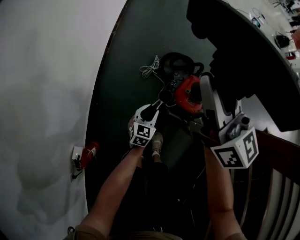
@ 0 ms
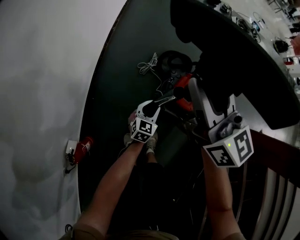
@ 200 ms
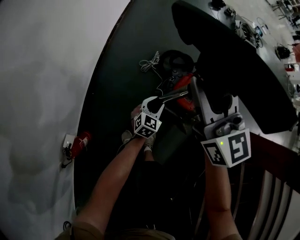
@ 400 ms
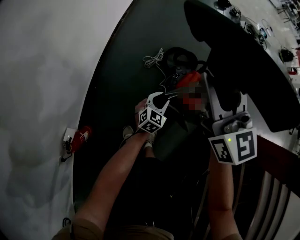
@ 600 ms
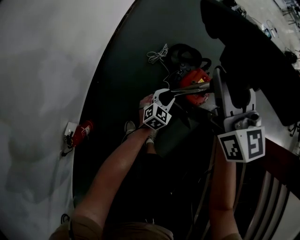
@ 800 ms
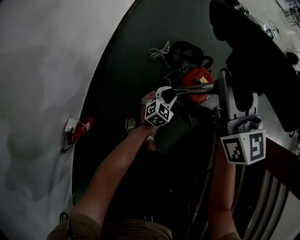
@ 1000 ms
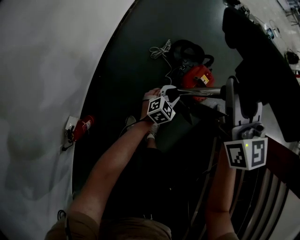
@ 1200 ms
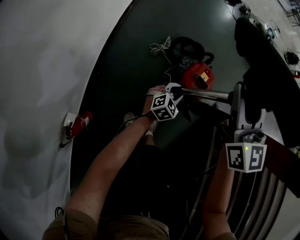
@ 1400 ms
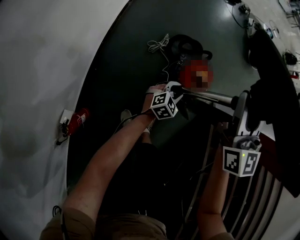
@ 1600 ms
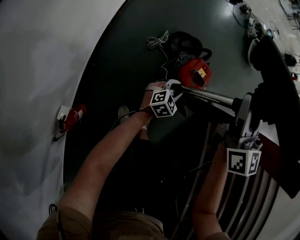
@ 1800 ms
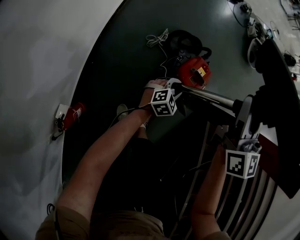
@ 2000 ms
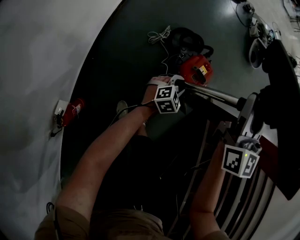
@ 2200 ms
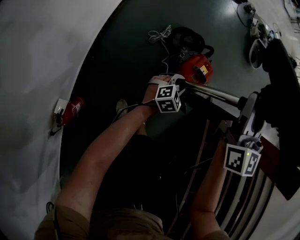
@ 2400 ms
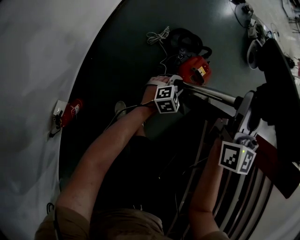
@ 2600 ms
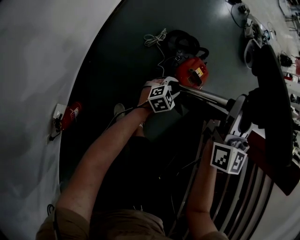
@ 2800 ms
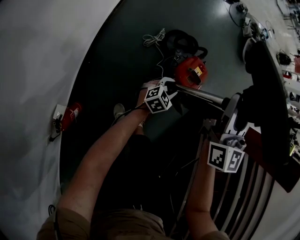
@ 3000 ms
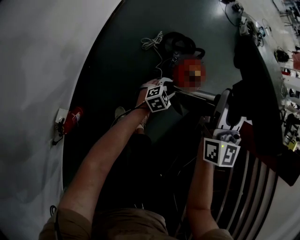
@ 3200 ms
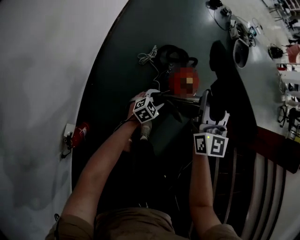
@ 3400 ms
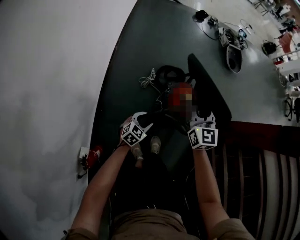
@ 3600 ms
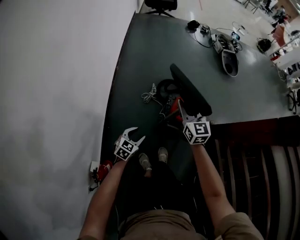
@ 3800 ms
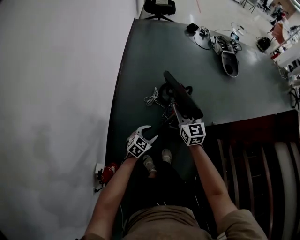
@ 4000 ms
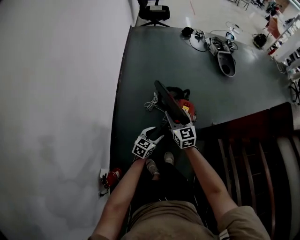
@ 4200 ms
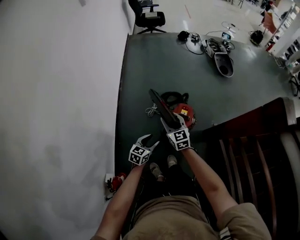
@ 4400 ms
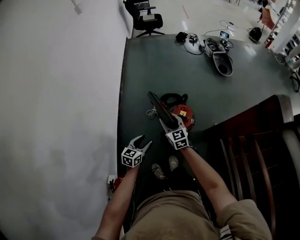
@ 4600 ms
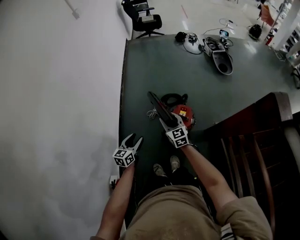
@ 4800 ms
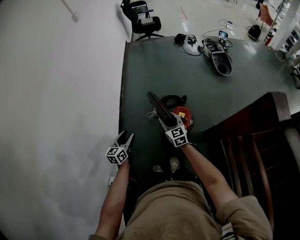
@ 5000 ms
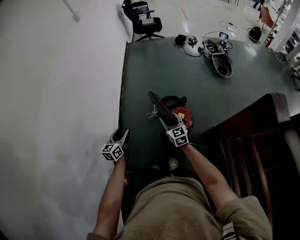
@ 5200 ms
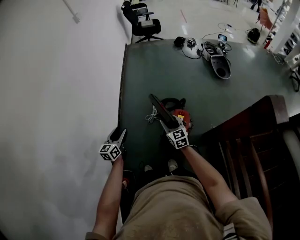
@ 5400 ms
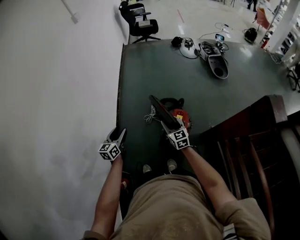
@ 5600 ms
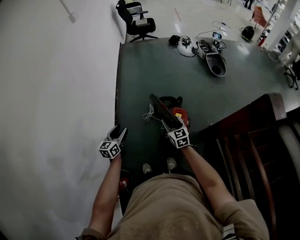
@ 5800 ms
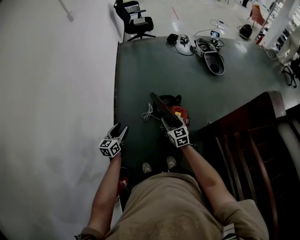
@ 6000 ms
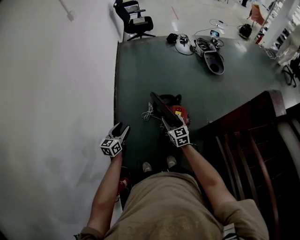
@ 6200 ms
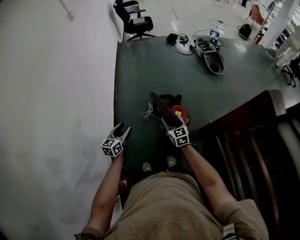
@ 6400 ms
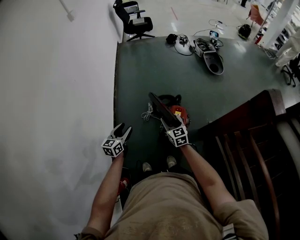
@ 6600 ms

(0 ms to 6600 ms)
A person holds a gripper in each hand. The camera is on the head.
0 ms - 1600 ms: The right gripper heads backward and to the right, covering some 10 cm, and swivels approximately 30 degrees, while the left gripper goes roughly 10 cm to the right, and turns by approximately 30 degrees.
1600 ms - 3200 ms: There are only small adjustments of the grippers.
3200 ms - 5000 ms: The left gripper moves upward, about 35 cm, and rotates approximately 40 degrees; the right gripper is displaced to the right by some 5 cm, and rotates roughly 20 degrees.
5000 ms - 6600 ms: The left gripper changes place by about 5 cm.

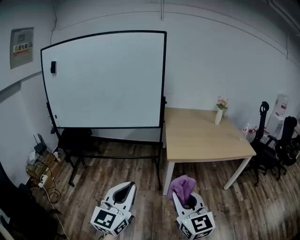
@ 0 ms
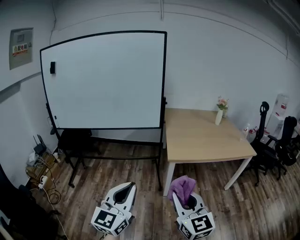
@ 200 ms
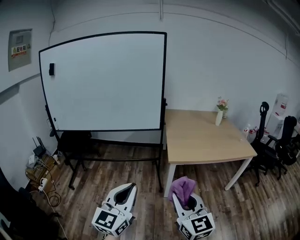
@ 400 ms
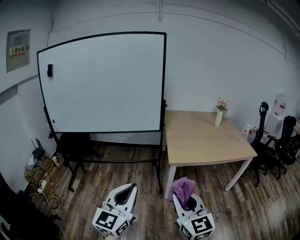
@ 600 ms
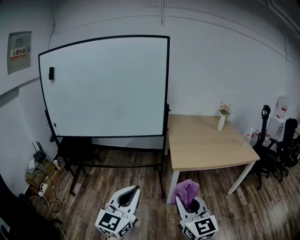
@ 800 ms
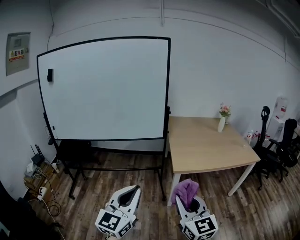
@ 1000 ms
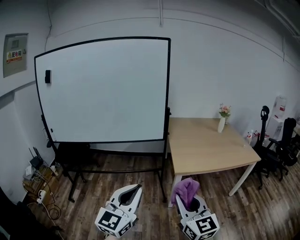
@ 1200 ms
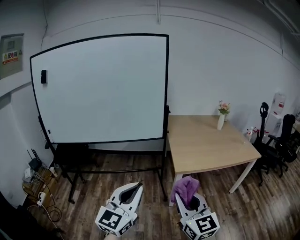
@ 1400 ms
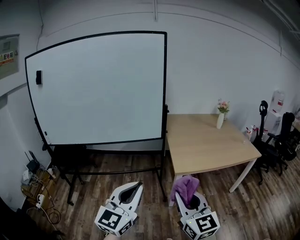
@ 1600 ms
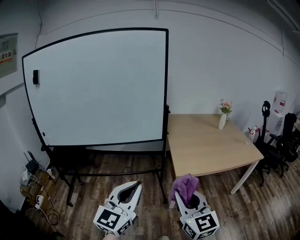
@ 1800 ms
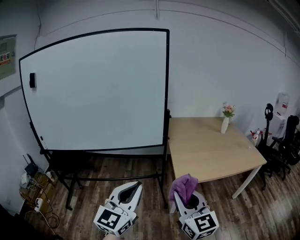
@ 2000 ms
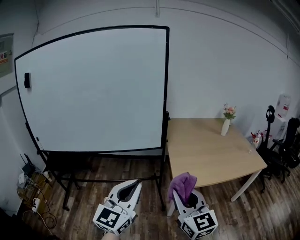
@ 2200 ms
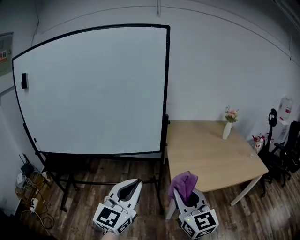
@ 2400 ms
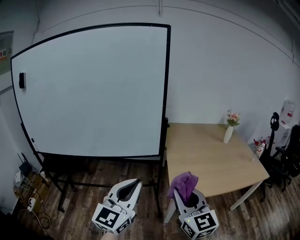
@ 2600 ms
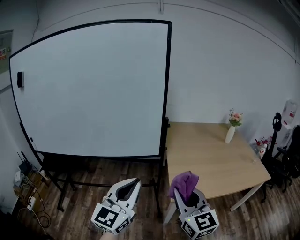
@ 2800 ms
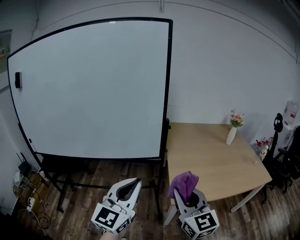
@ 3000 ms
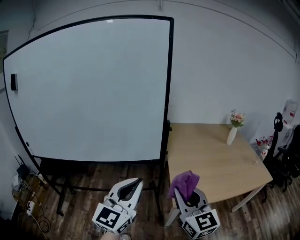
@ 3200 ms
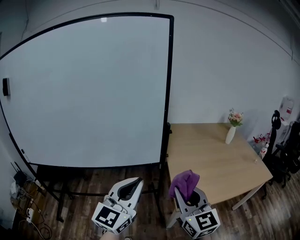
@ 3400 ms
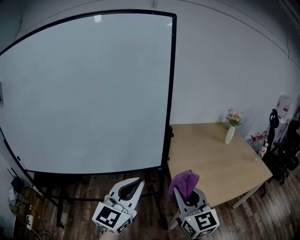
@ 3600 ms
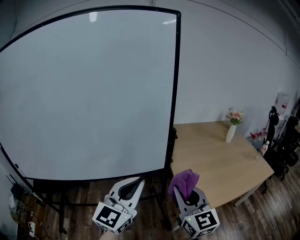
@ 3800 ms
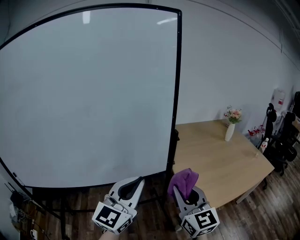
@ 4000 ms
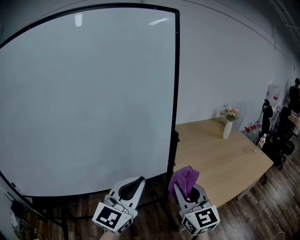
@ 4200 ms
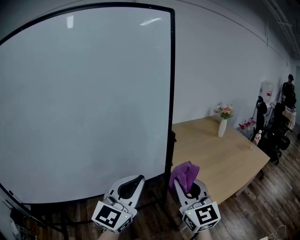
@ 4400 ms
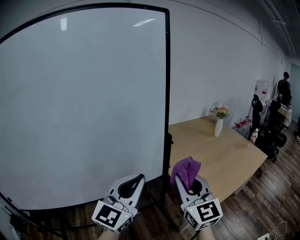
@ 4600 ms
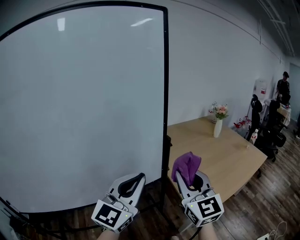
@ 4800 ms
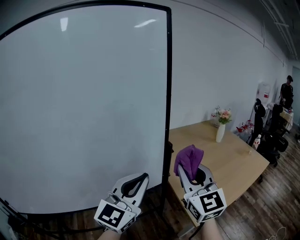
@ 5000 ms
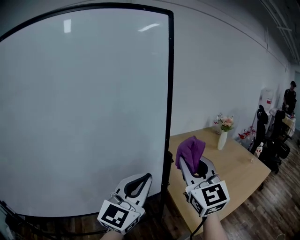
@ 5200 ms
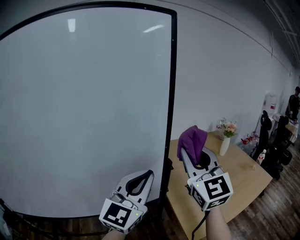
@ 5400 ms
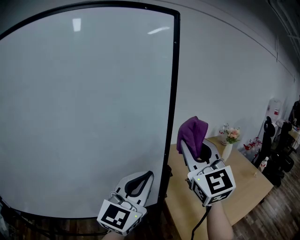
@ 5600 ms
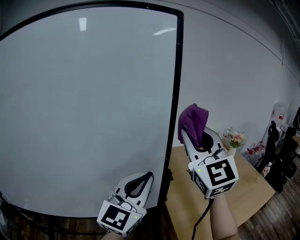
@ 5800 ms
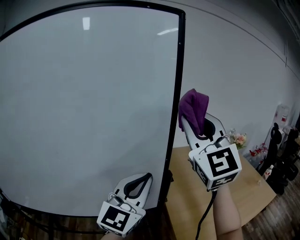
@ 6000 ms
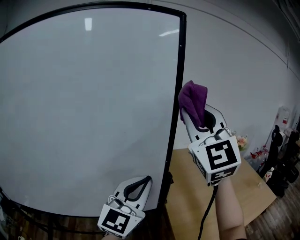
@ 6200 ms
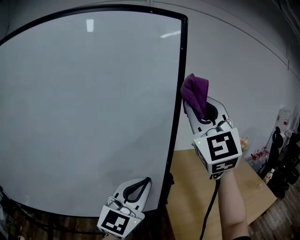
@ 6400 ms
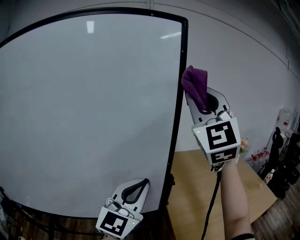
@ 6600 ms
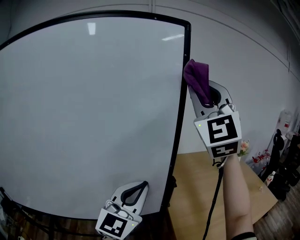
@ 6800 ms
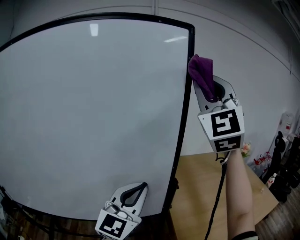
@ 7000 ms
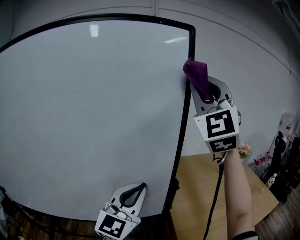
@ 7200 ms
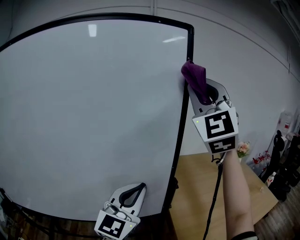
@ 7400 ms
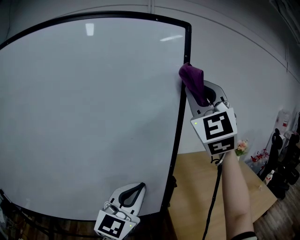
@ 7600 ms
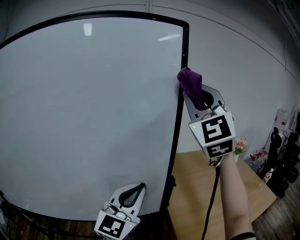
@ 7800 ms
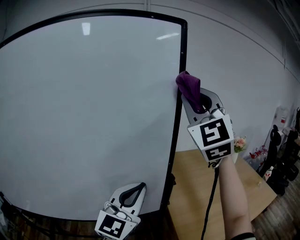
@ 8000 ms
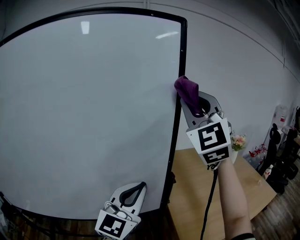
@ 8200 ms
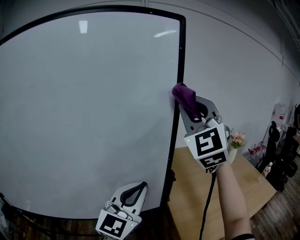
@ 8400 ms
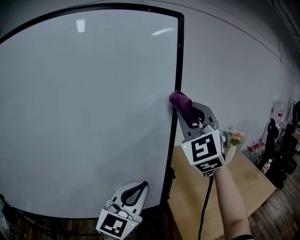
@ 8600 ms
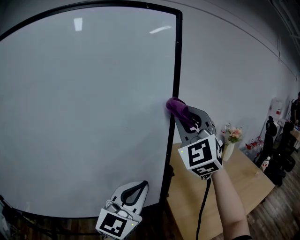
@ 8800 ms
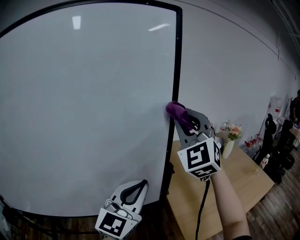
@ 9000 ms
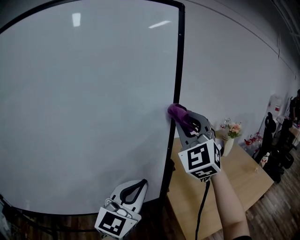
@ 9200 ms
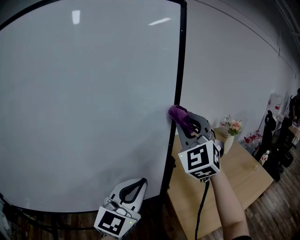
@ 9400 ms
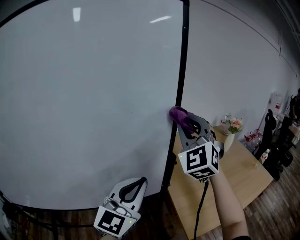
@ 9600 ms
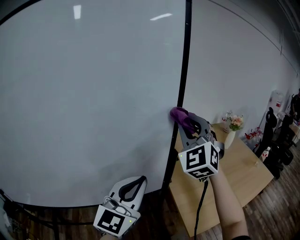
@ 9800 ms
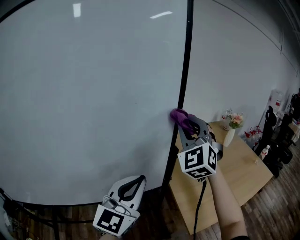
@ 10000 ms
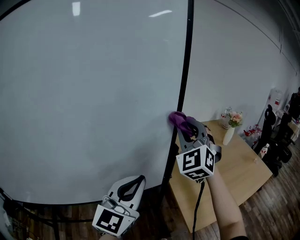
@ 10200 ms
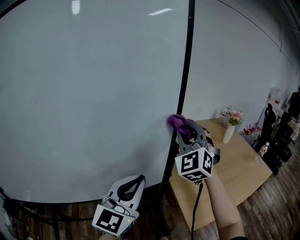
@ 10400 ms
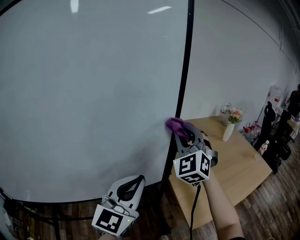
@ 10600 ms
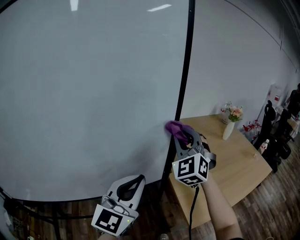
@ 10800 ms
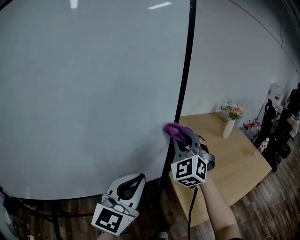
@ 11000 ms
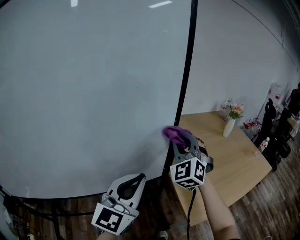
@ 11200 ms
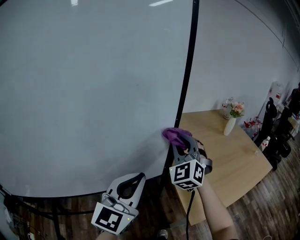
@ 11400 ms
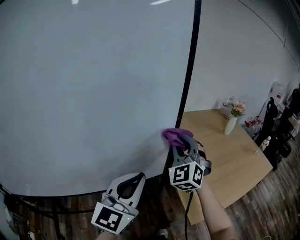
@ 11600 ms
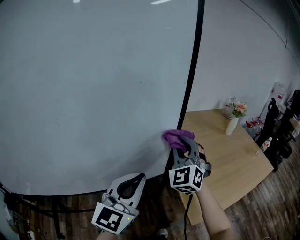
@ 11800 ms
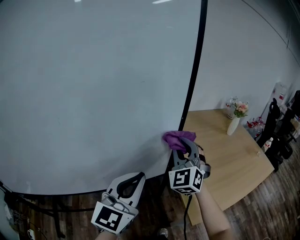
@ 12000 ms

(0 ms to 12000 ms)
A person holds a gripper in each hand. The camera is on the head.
0 ms - 1600 ms: Both grippers move forward and to the left, about 15 cm.
1600 ms - 3000 ms: The two grippers go roughly 30 cm forward.
3000 ms - 4400 ms: The two grippers go some 20 cm forward and to the left. The left gripper turns by about 20 degrees.
4400 ms - 6000 ms: The right gripper is displaced upward and forward by approximately 35 cm, and swivels about 30 degrees. The left gripper heads forward and upward, covering roughly 20 cm.
6000 ms - 7600 ms: The right gripper heads upward, covering about 10 cm.
7600 ms - 9000 ms: The right gripper moves downward, roughly 15 cm.
9000 ms - 10400 ms: The left gripper moves roughly 5 cm, while the right gripper moves downward, some 10 cm.
10400 ms - 12000 ms: The right gripper shifts roughly 10 cm downward.

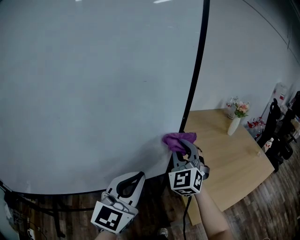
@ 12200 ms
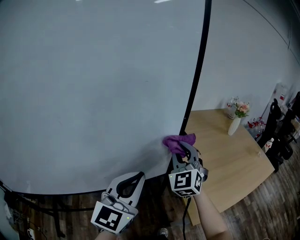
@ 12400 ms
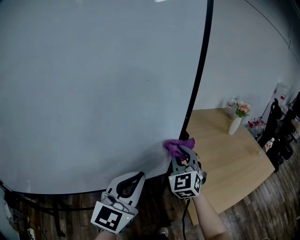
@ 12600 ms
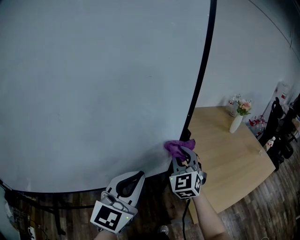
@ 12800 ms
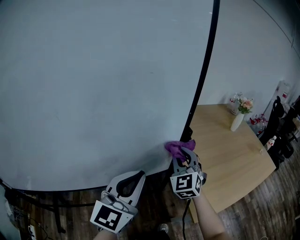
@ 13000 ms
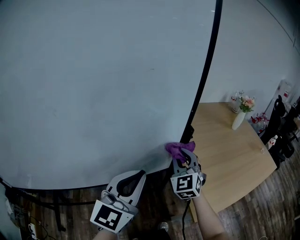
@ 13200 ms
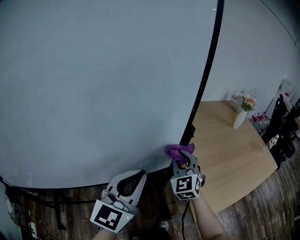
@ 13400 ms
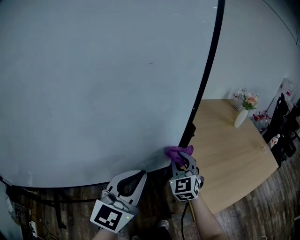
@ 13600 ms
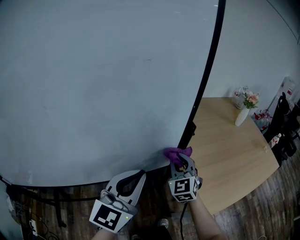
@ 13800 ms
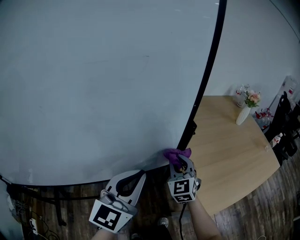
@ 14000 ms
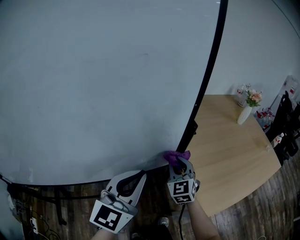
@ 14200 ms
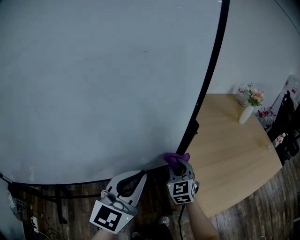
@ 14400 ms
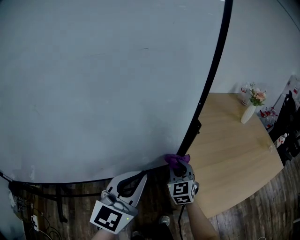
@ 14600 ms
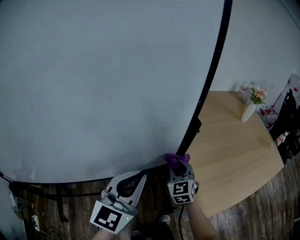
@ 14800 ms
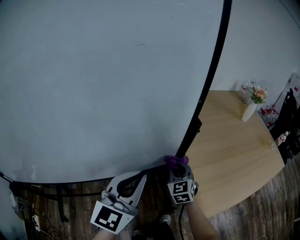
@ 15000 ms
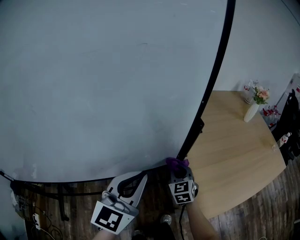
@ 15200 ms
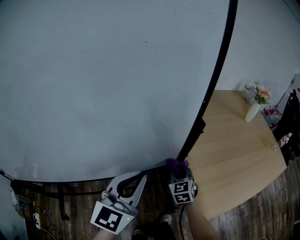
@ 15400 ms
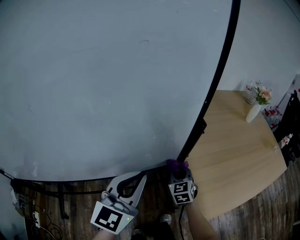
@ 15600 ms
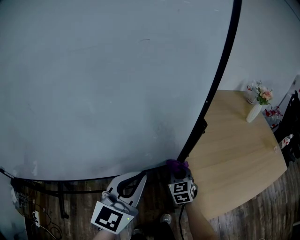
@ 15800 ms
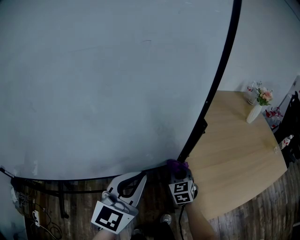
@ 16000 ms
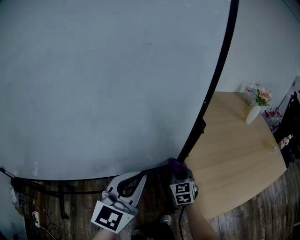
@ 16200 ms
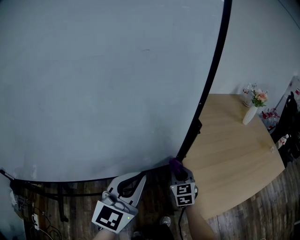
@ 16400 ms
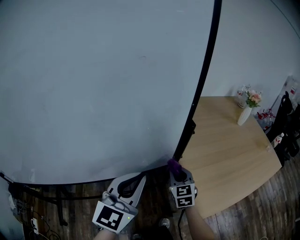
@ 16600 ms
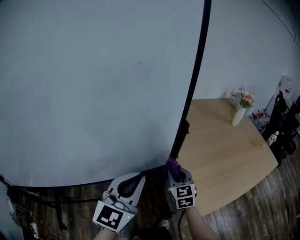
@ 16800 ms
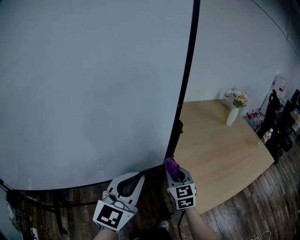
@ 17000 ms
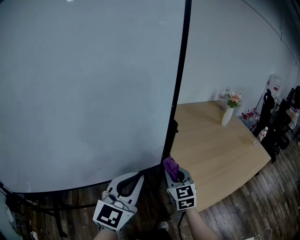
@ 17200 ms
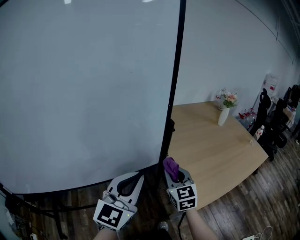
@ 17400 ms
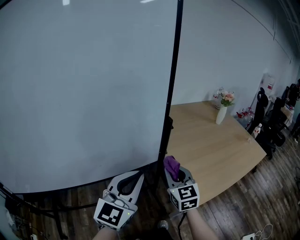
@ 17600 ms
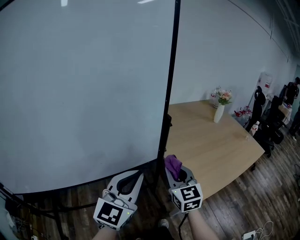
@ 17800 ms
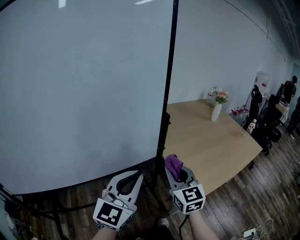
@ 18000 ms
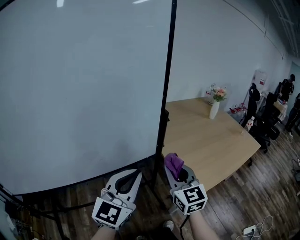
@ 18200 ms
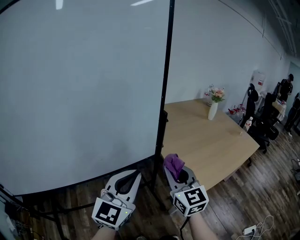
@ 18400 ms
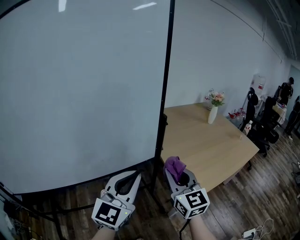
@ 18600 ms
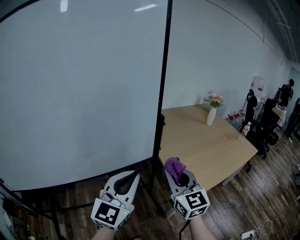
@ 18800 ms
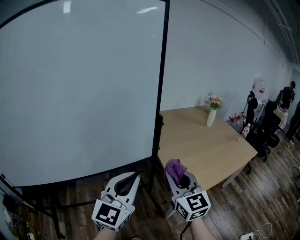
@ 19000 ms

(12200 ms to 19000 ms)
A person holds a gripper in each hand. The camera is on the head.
12200 ms - 13600 ms: The right gripper goes approximately 15 cm downward.
13600 ms - 15000 ms: The right gripper is displaced downward by some 10 cm.
15000 ms - 16200 ms: There are only small adjustments of the grippers.
16200 ms - 17600 ms: The left gripper travels backward and upward by about 10 cm. Meanwhile the right gripper moves upward and backward, approximately 25 cm.
17600 ms - 19000 ms: The left gripper heads backward, covering approximately 10 cm; the right gripper shifts about 15 cm backward and upward.
